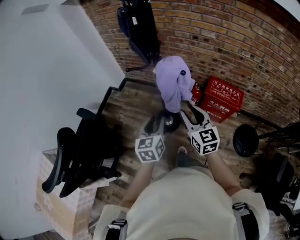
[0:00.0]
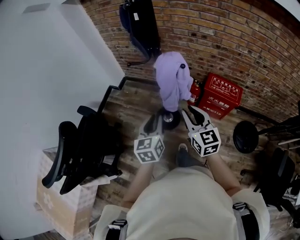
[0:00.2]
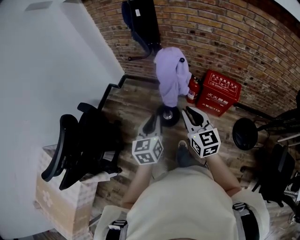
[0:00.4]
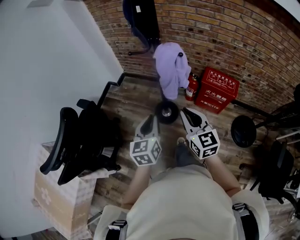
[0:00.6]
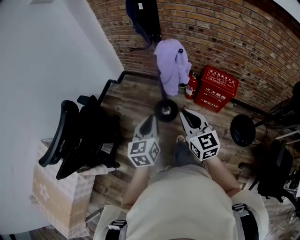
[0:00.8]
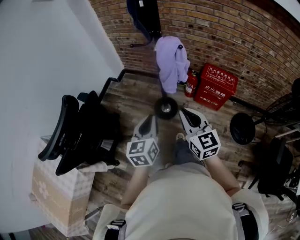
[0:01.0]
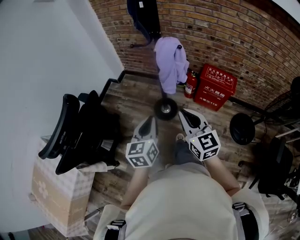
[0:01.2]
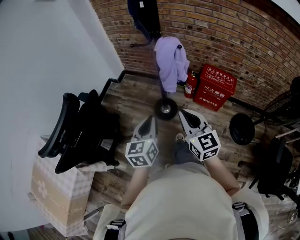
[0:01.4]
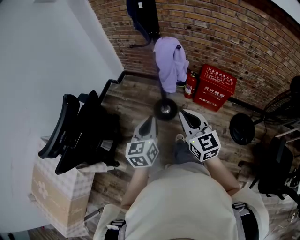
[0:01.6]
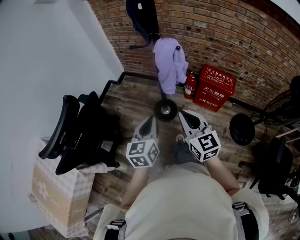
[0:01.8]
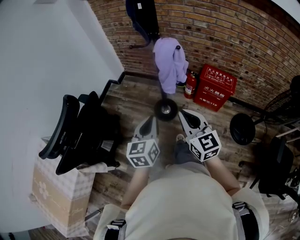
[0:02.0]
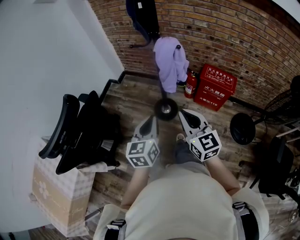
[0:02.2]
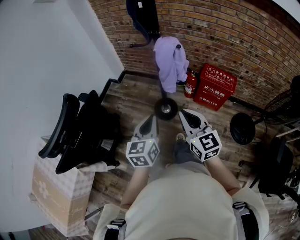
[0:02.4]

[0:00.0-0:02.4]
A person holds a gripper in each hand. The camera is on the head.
0:00.0 to 0:01.2: The grippers both shift backward by about 15 cm. The left gripper closes up. The right gripper closes up.
0:01.2 to 0:02.4: The grippers make only small movements.

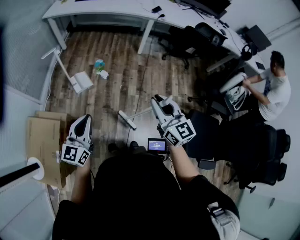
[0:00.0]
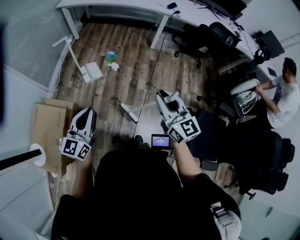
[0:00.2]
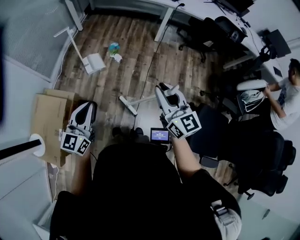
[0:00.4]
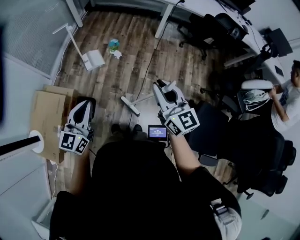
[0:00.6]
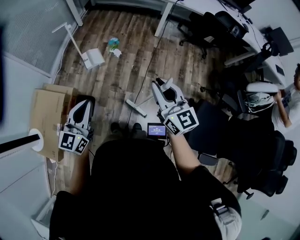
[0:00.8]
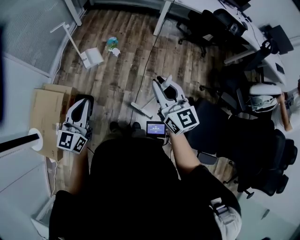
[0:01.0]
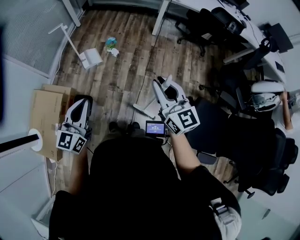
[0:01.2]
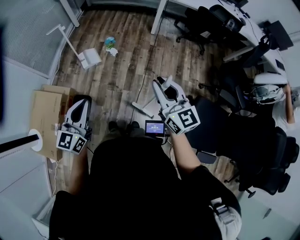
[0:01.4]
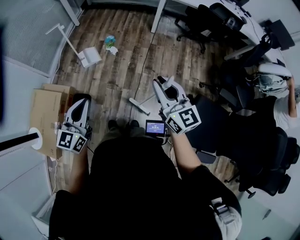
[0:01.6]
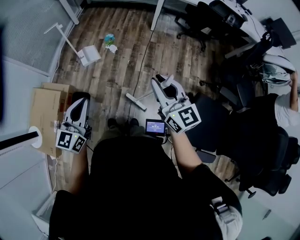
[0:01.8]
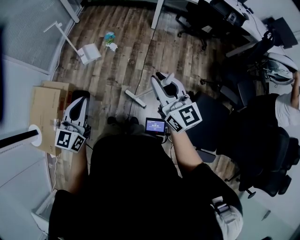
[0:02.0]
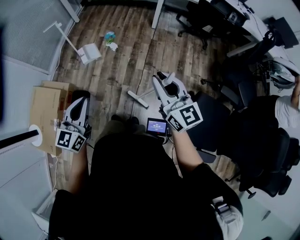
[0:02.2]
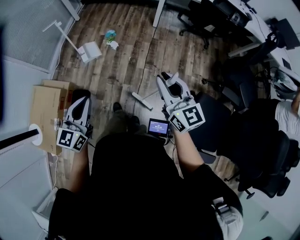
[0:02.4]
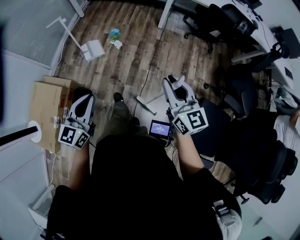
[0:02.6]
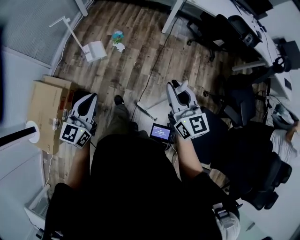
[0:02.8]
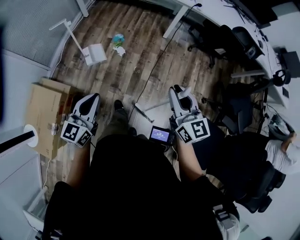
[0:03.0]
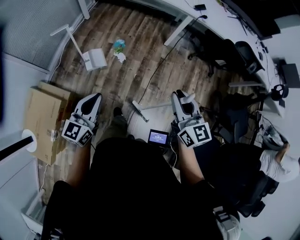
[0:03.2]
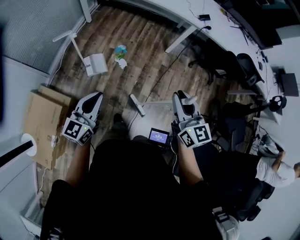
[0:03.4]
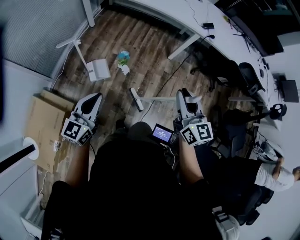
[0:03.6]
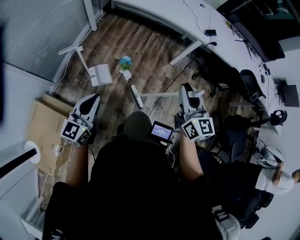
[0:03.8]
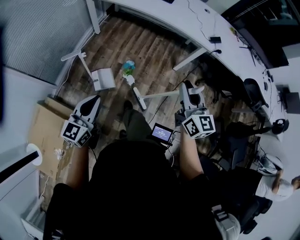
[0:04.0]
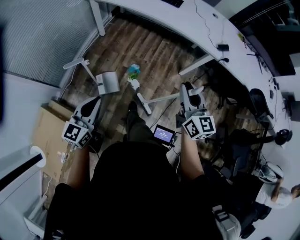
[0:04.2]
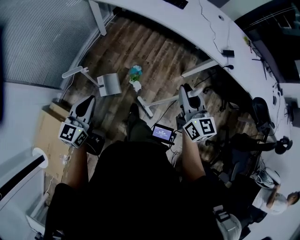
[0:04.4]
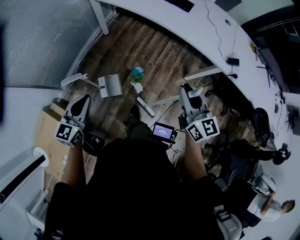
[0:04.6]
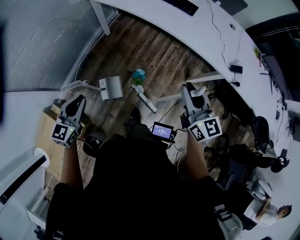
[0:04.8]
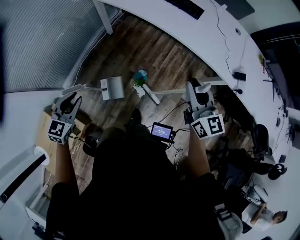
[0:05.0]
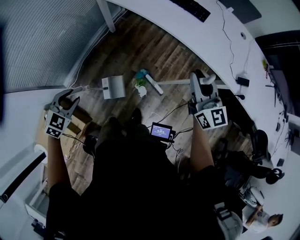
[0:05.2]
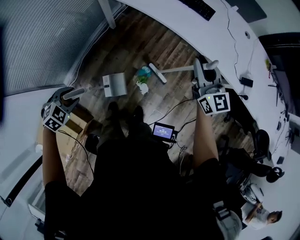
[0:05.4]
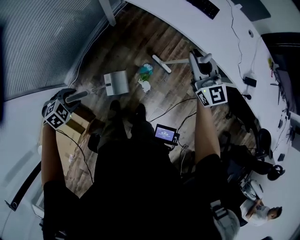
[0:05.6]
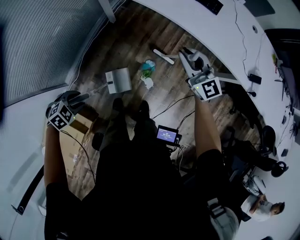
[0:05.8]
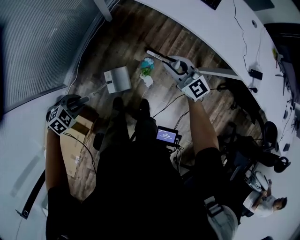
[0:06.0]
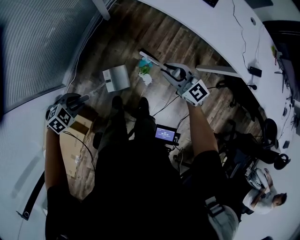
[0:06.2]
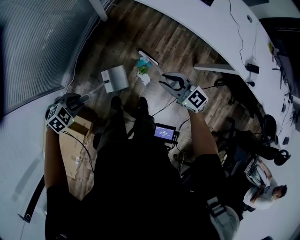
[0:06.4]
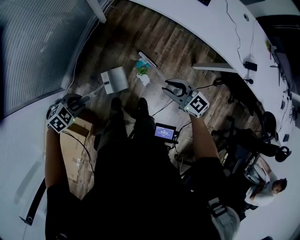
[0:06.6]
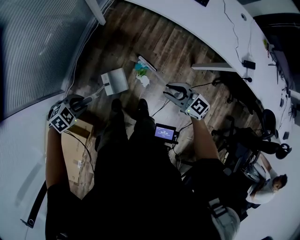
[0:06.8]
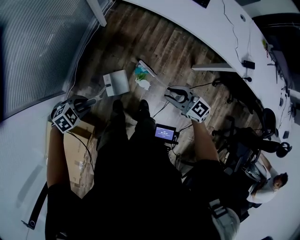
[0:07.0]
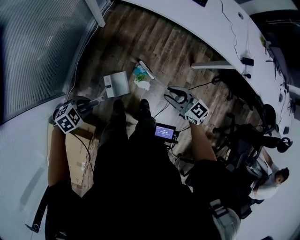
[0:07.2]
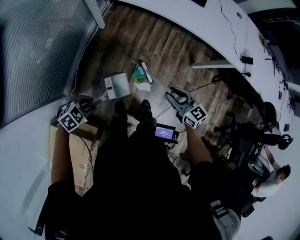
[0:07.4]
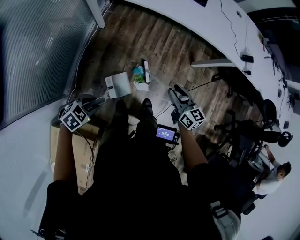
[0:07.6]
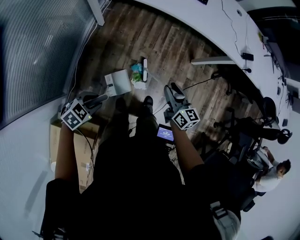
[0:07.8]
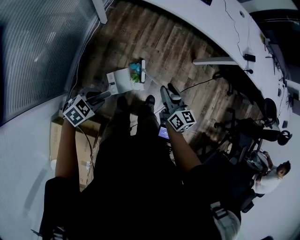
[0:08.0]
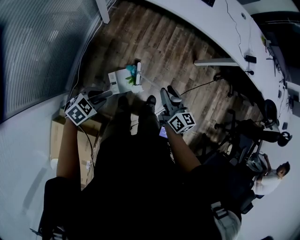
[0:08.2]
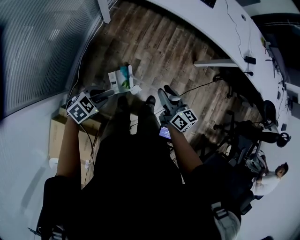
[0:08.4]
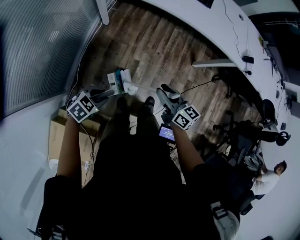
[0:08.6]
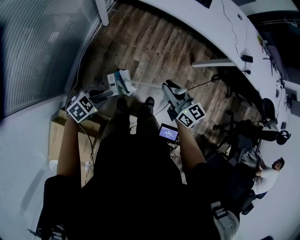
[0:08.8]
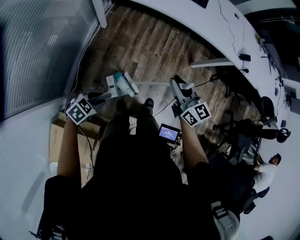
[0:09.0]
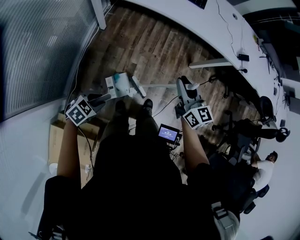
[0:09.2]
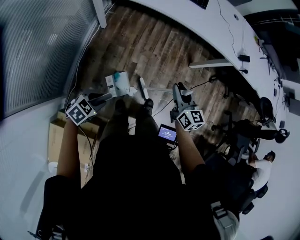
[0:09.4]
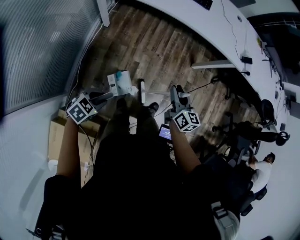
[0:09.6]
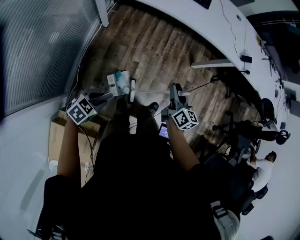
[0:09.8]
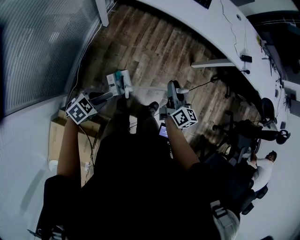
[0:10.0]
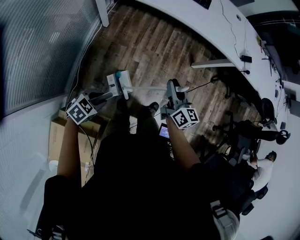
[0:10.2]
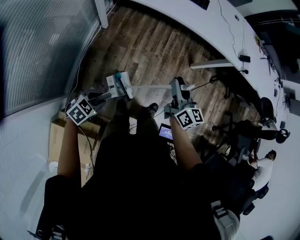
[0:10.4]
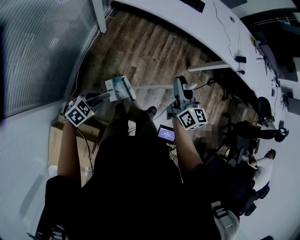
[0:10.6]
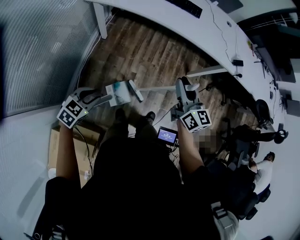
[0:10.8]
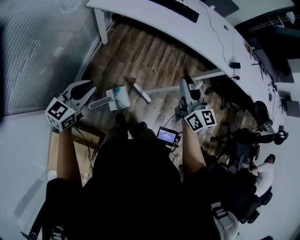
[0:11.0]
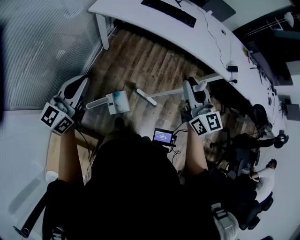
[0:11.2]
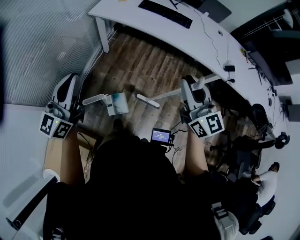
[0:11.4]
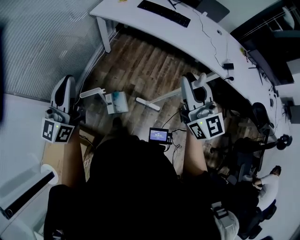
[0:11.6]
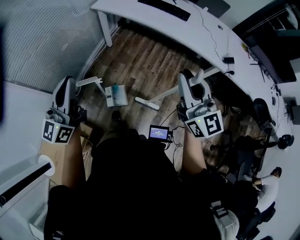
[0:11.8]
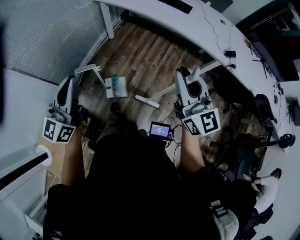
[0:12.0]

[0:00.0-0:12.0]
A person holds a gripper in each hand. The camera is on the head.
0:00.0 to 0:01.6: The right gripper heads to the right, covering approximately 10 cm. Meanwhile the left gripper goes some 10 cm to the right and backward.
0:01.6 to 0:03.0: The grippers both shift forward by about 15 cm.
0:03.0 to 0:04.4: The two grippers travel together, forward, about 40 cm.
0:04.4 to 0:06.0: The right gripper heads forward, downward and to the left, covering about 35 cm, and rotates approximately 40 degrees. Meanwhile the left gripper heads downward, to the left and forward, covering approximately 30 cm, angles its fingers downward, by approximately 60 degrees, and opens up.
0:06.0 to 0:07.6: The right gripper shifts by about 15 cm, and turns by roughly 50 degrees.
0:07.6 to 0:09.0: The right gripper moves upward and to the left, about 10 cm.
0:09.0 to 0:10.4: The right gripper moves approximately 10 cm downward and comes back, and swivels about 20 degrees.
0:10.4 to 0:12.0: The left gripper travels upward by roughly 35 cm, points its fingers approximately 70 degrees further upward, and closes. Meanwhile the right gripper shifts roughly 25 cm upward, and rotates roughly 40 degrees.

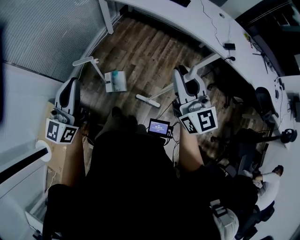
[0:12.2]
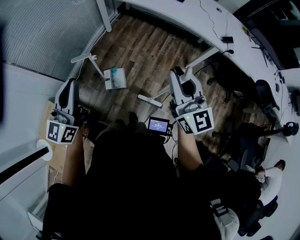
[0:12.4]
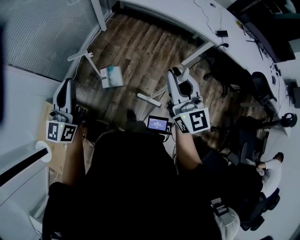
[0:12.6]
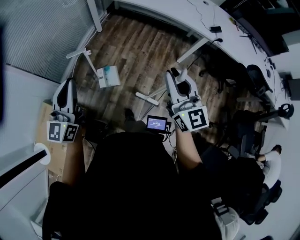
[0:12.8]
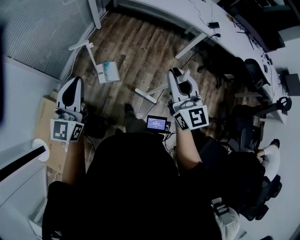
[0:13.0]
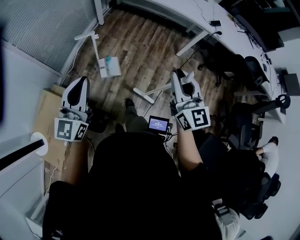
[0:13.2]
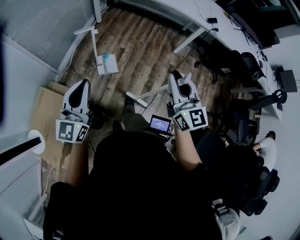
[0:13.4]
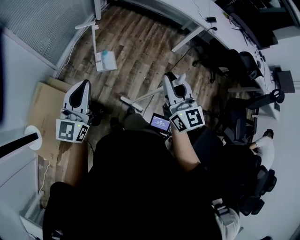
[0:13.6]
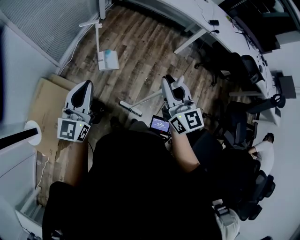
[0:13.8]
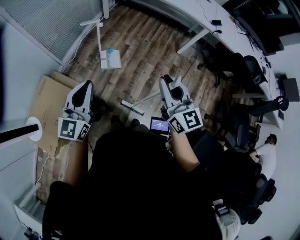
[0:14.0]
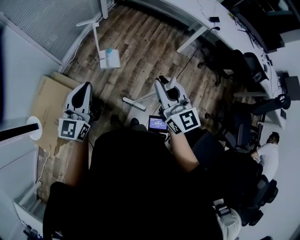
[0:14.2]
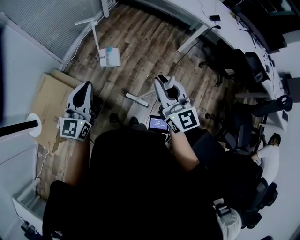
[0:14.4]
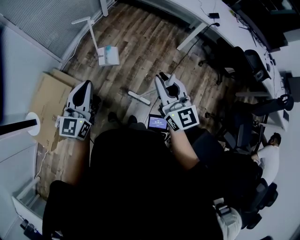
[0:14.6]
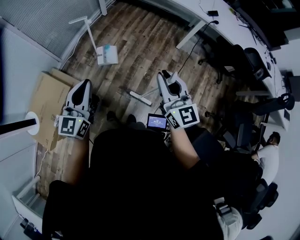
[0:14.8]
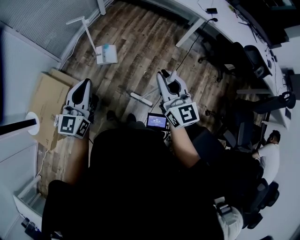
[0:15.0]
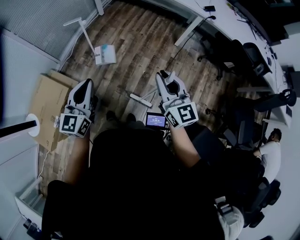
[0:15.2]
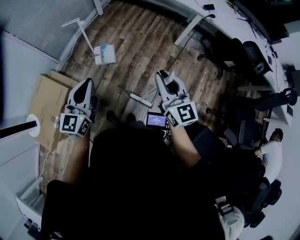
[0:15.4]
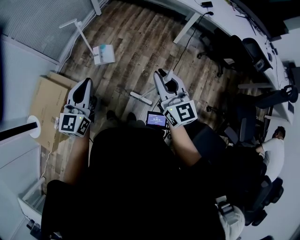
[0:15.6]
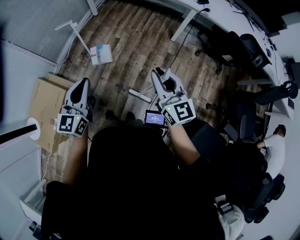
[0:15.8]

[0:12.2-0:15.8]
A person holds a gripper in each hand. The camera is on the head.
0:12.2 to 0:14.0: Both grippers move backward, roughly 30 cm.
0:14.0 to 0:15.8: Both grippers travel together to the right, roughly 15 cm.

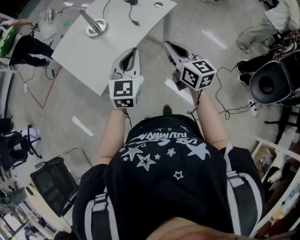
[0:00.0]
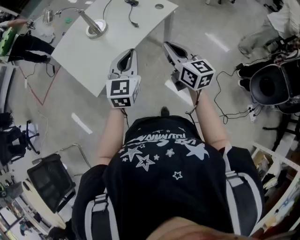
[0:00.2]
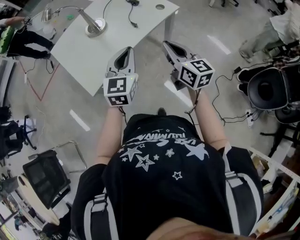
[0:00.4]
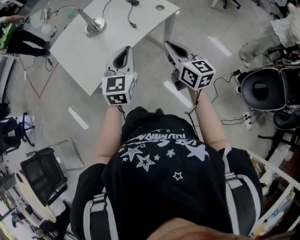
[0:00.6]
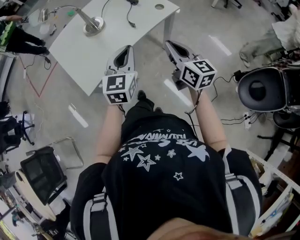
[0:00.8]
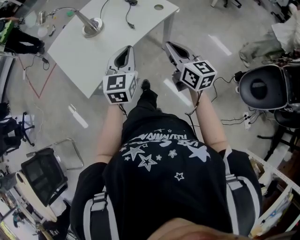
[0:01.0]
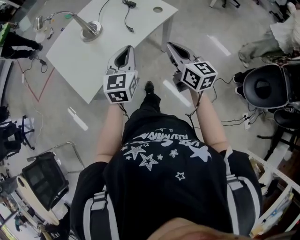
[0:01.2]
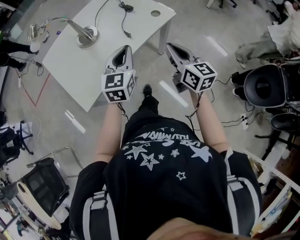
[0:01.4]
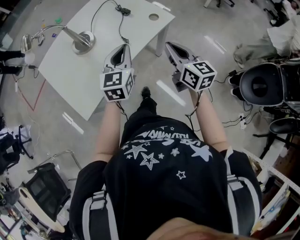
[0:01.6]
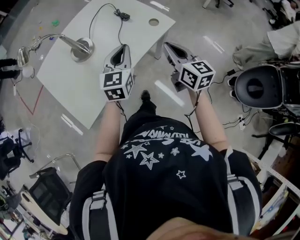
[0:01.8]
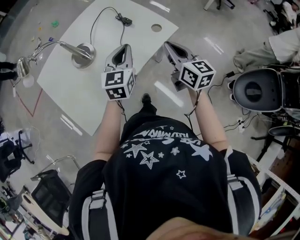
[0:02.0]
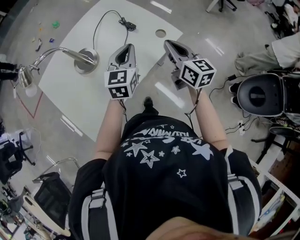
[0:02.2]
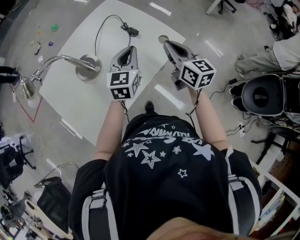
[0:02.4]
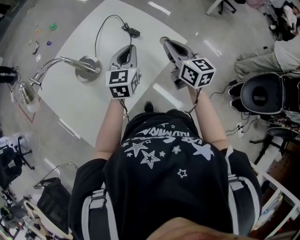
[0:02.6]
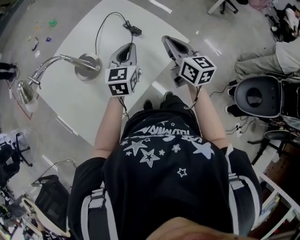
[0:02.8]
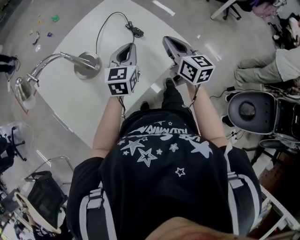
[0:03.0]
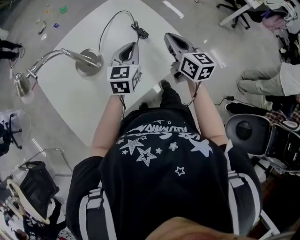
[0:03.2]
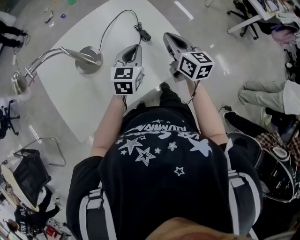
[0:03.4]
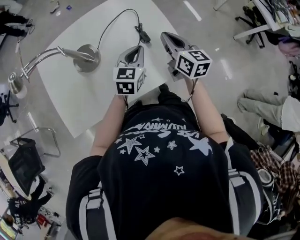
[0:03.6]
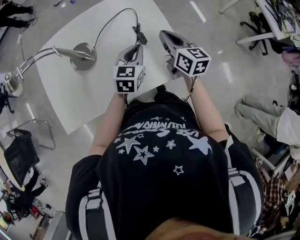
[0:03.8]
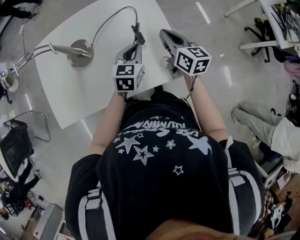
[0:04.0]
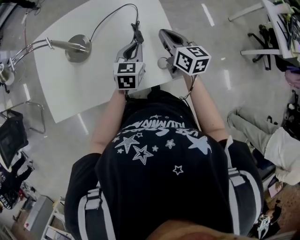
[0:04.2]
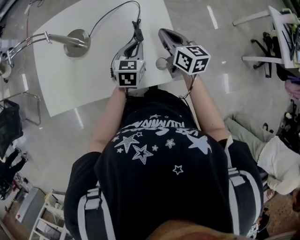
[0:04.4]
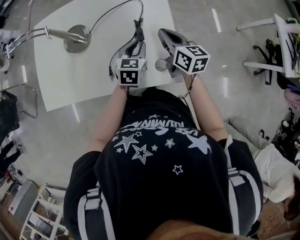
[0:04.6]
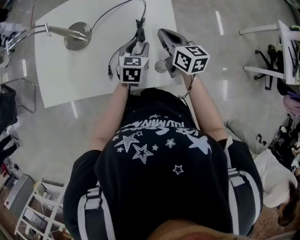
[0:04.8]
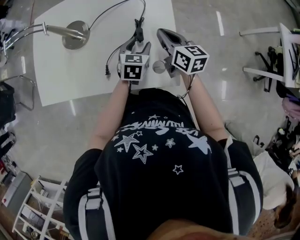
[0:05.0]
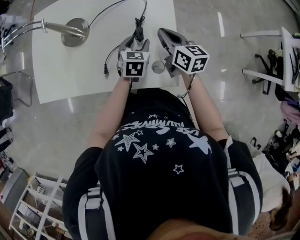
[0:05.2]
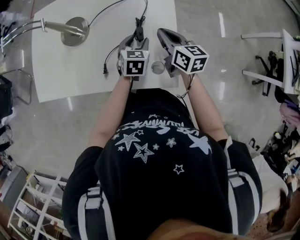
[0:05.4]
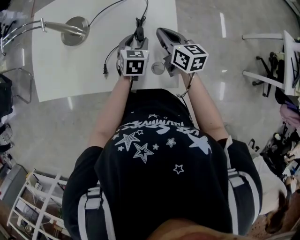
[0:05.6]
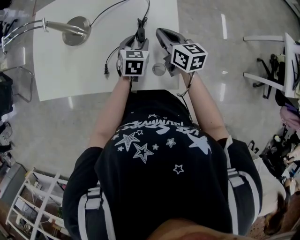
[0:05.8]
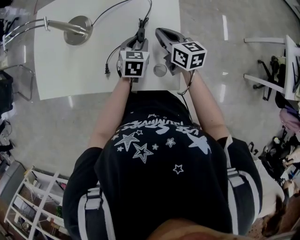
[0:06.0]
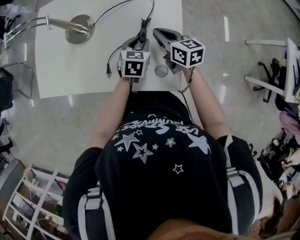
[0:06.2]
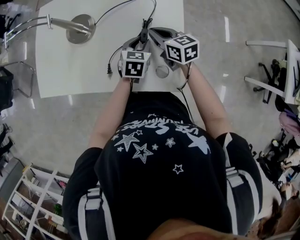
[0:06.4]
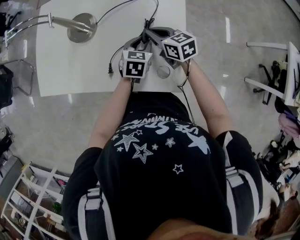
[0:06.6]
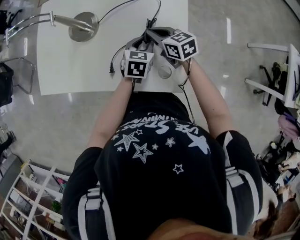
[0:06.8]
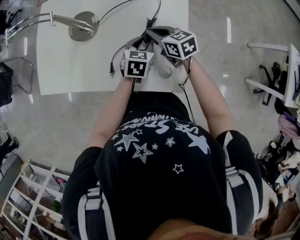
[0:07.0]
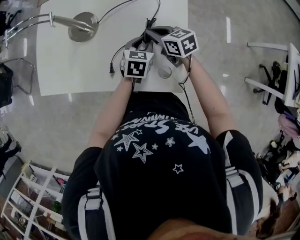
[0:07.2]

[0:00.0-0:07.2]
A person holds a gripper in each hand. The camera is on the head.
0:00.0 to 0:01.4: The left gripper shifts roughly 10 cm forward. Meanwhile the right gripper shifts some 10 cm forward and to the right.
0:01.4 to 0:02.8: Both grippers move forward, some 25 cm.
0:02.8 to 0:04.4: The right gripper ends up roughly 20 cm from where it was, and swivels about 40 degrees. The left gripper moves about 15 cm, and turns by about 40 degrees.
0:04.4 to 0:05.8: The right gripper changes place by about 5 cm. The left gripper is displaced downward by approximately 5 cm, and opens.
0:05.8 to 0:07.2: The right gripper heads to the left, covering approximately 5 cm, and swivels roughly 30 degrees.
